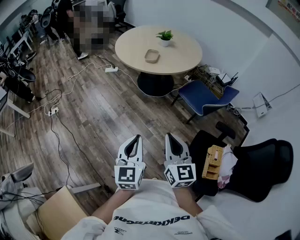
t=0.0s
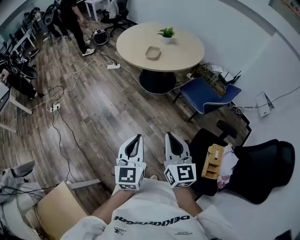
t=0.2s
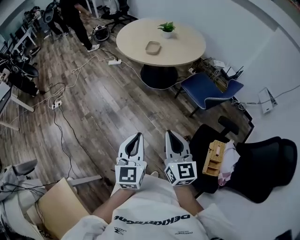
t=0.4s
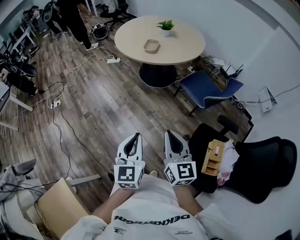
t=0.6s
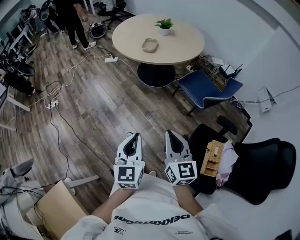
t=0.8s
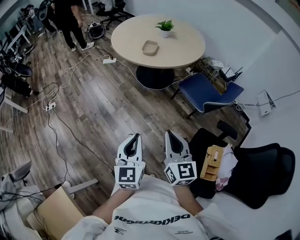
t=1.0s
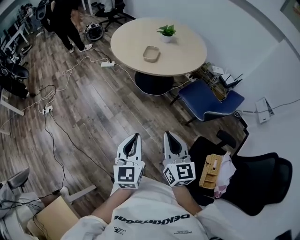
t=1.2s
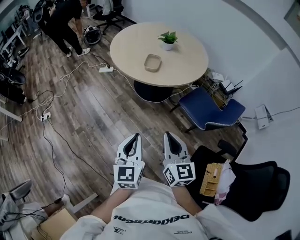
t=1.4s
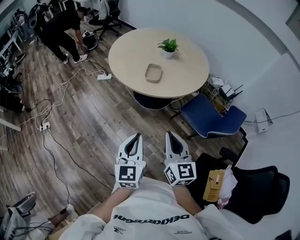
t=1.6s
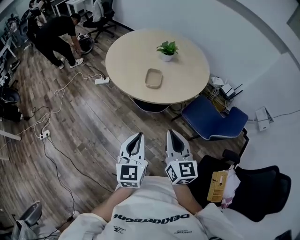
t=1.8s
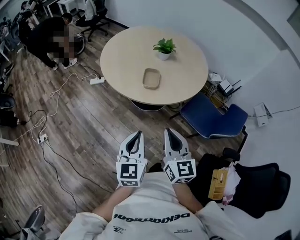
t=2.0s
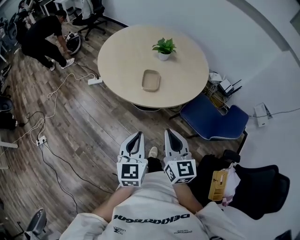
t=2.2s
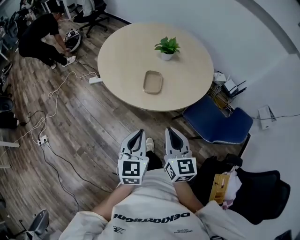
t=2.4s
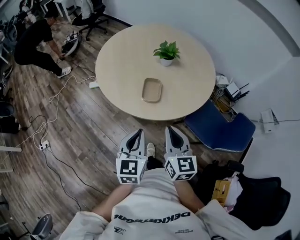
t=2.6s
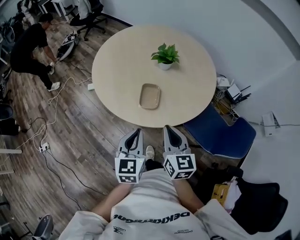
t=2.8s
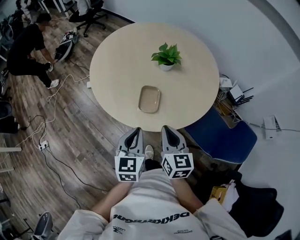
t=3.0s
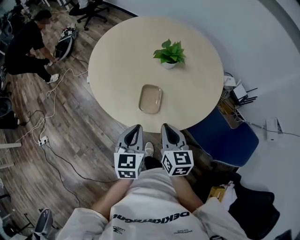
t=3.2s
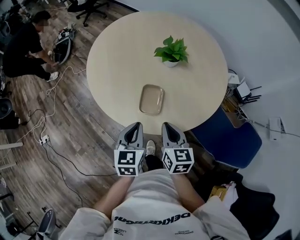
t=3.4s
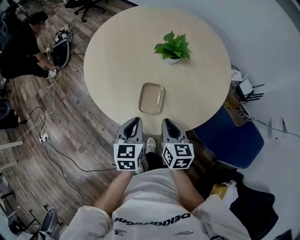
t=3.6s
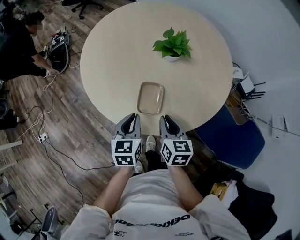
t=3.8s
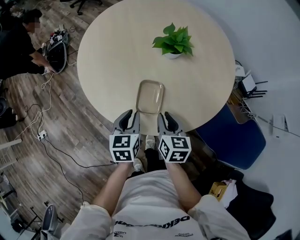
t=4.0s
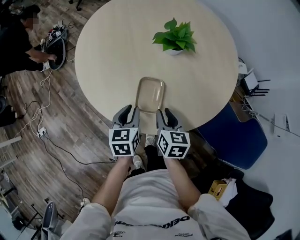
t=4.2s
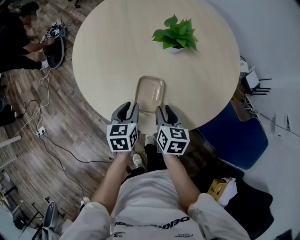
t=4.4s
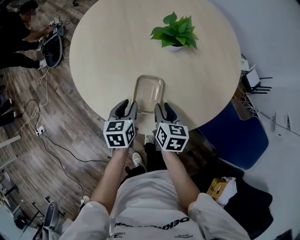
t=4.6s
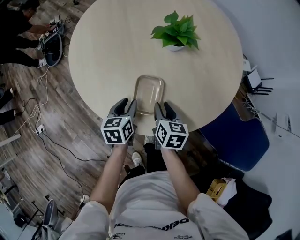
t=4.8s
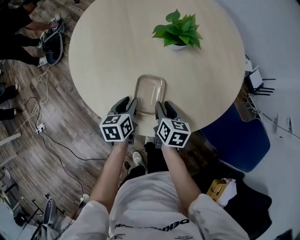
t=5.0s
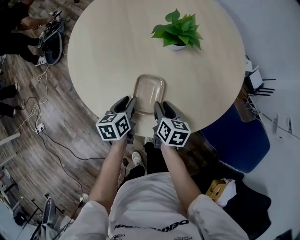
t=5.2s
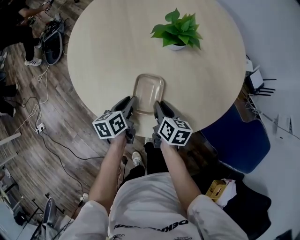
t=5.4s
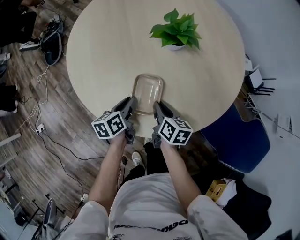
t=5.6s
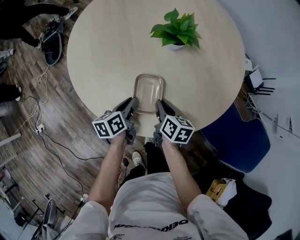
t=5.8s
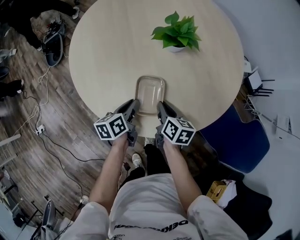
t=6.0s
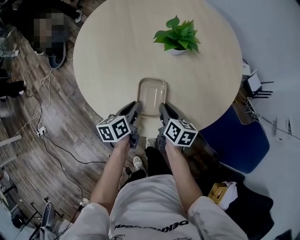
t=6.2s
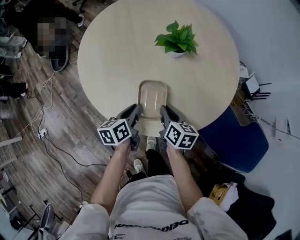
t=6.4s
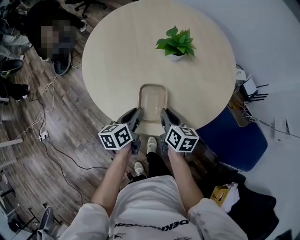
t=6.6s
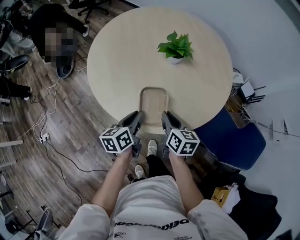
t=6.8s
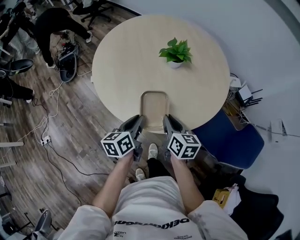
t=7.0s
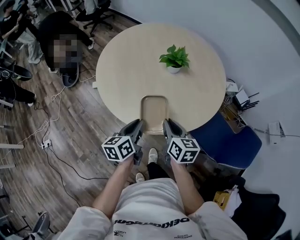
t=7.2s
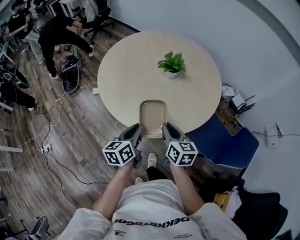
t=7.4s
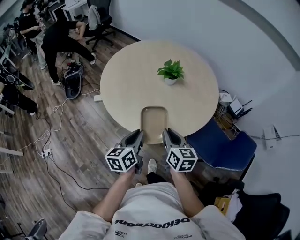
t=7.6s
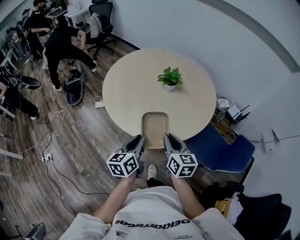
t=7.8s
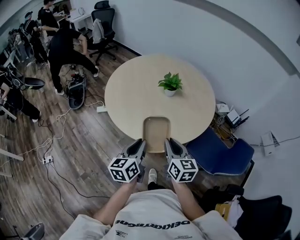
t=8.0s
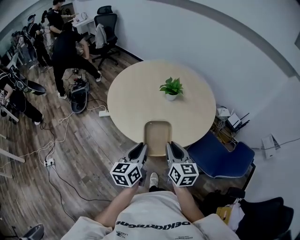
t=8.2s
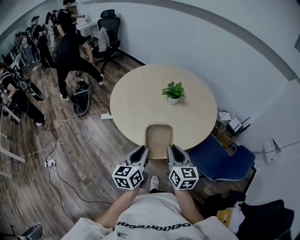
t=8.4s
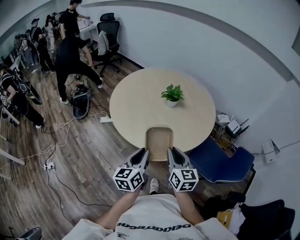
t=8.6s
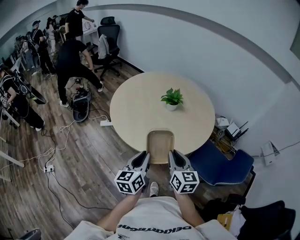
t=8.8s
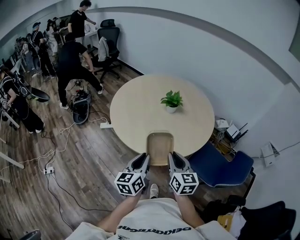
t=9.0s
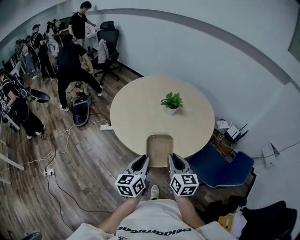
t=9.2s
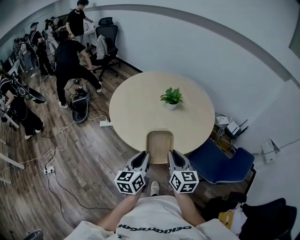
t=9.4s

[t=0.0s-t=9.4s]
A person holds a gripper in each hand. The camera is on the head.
t=0.0s to t=1.6s: Both grippers travel together forward, about 30 cm.
t=1.6s to t=3.2s: The pair of grippers is taken forward, some 40 cm. The right gripper rotates approximately 20 degrees.
t=3.2s to t=4.8s: The two grippers go approximately 25 cm downward and forward. The left gripper turns by approximately 20 degrees, and opens its fingers. The right gripper rotates approximately 20 degrees, and opens up.
t=4.8s to t=6.2s: The left gripper turns by about 20 degrees.
t=6.2s to t=7.8s: Both grippers travel together upward and backward, roughly 30 cm. The left gripper changes its angle by roughly 20 degrees, while the right gripper changes its angle by some 30 degrees.
t=7.8s to t=9.4s: The right gripper moves approximately 5 cm; the left gripper ends up roughly 5 cm from where it was.

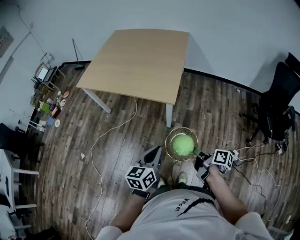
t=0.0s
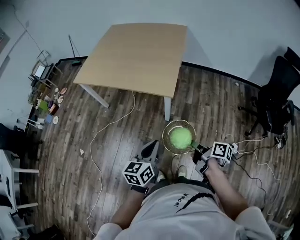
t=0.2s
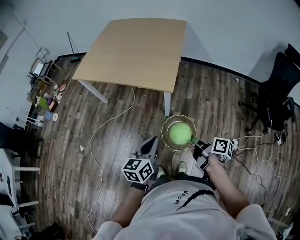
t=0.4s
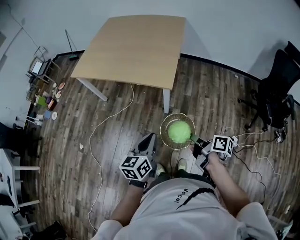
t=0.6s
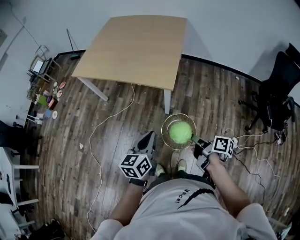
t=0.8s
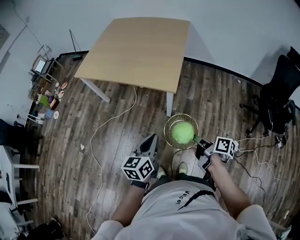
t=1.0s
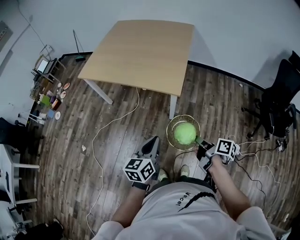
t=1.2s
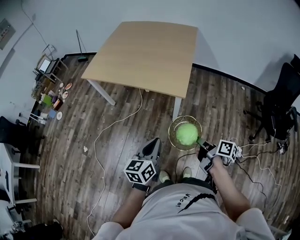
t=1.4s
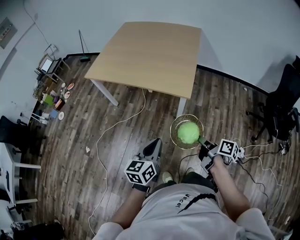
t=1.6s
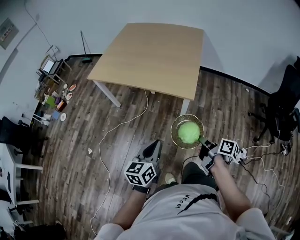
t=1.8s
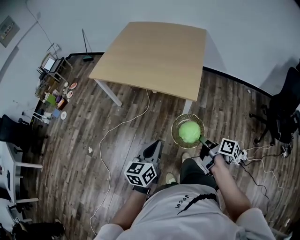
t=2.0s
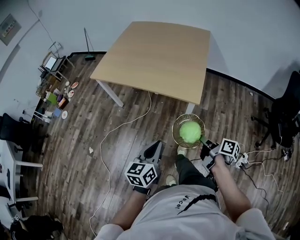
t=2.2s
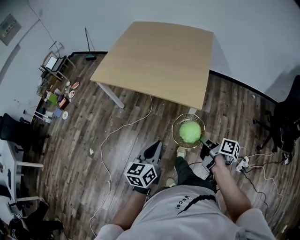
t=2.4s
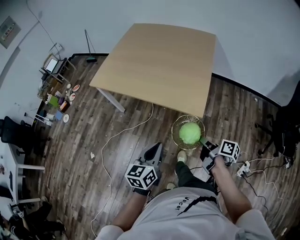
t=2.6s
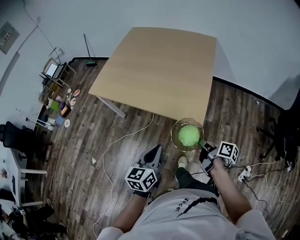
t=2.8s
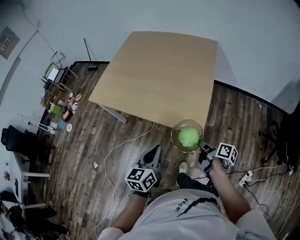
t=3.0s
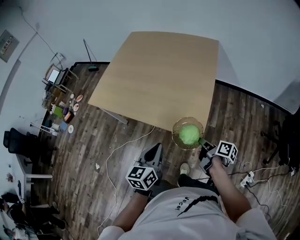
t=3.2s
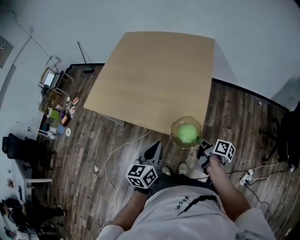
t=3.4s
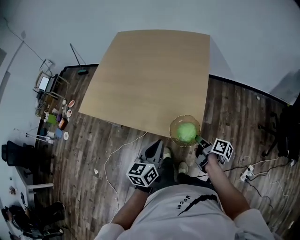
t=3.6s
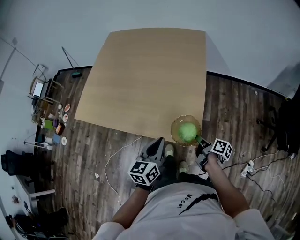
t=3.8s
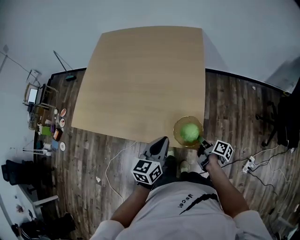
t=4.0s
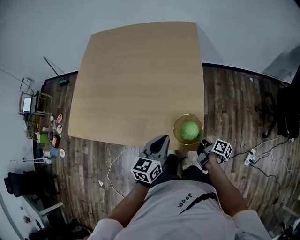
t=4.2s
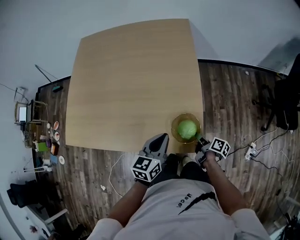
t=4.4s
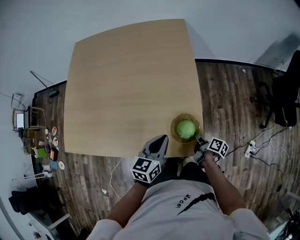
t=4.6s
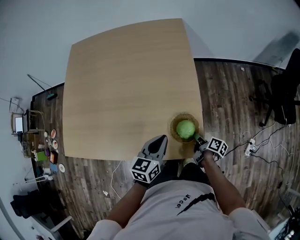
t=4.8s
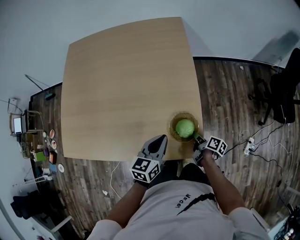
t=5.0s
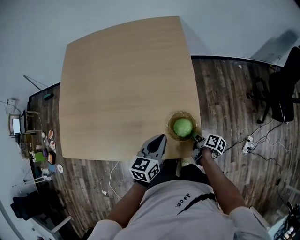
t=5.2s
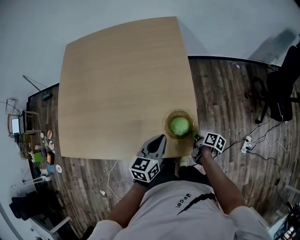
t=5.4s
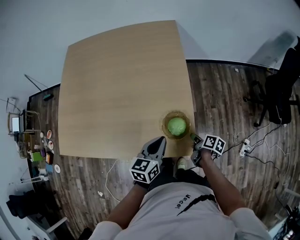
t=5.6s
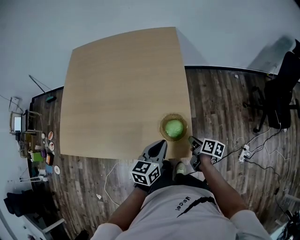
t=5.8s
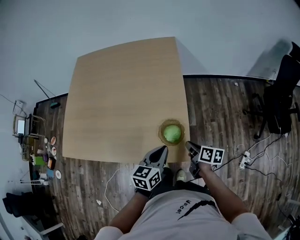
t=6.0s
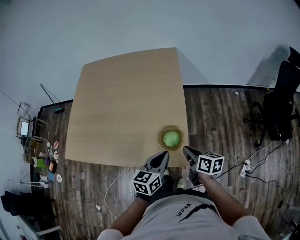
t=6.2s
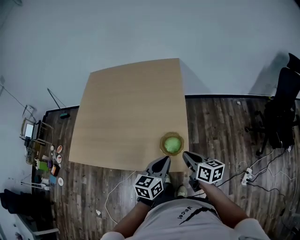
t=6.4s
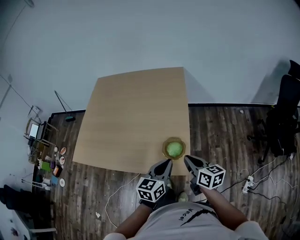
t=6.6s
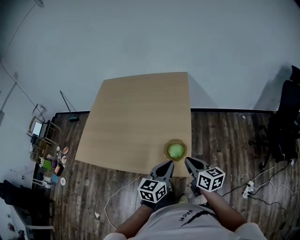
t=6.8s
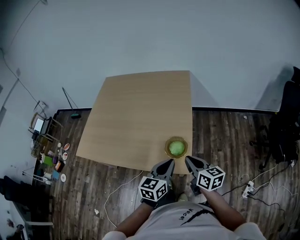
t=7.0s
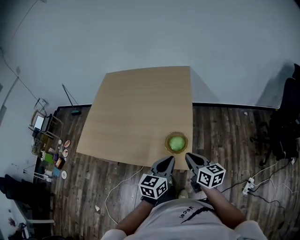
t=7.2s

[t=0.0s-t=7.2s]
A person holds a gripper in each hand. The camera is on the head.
t=0.0s to t=1.4s: The left gripper shifts by about 10 cm.
t=1.4s to t=2.8s: The left gripper moves roughly 20 cm.
t=2.8s to t=4.4s: The left gripper changes place by roughly 35 cm, and rotates roughly 30 degrees.
t=5.8s to t=7.2s: The left gripper heads upward, covering about 10 cm.

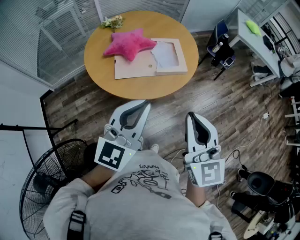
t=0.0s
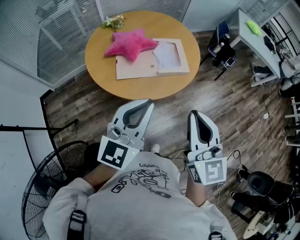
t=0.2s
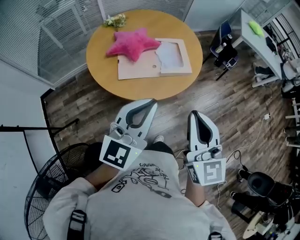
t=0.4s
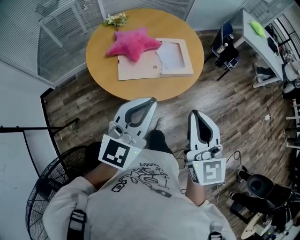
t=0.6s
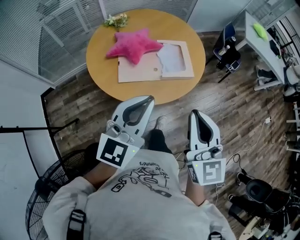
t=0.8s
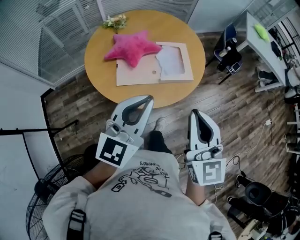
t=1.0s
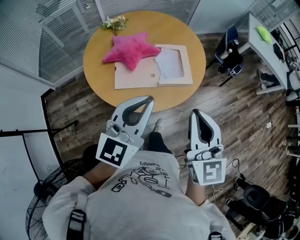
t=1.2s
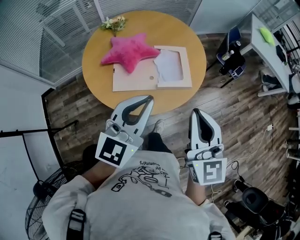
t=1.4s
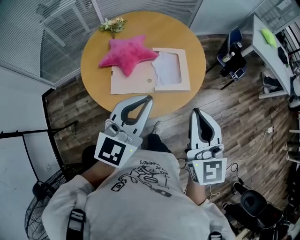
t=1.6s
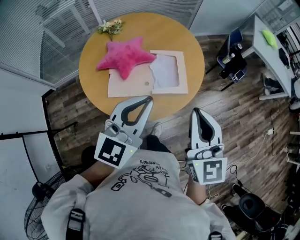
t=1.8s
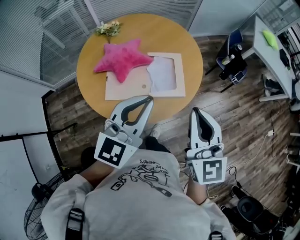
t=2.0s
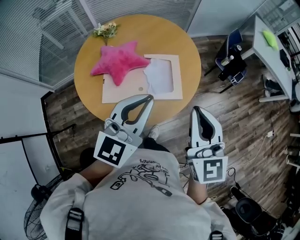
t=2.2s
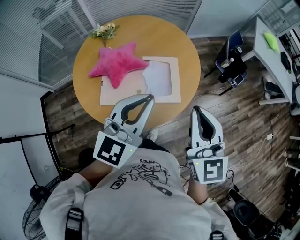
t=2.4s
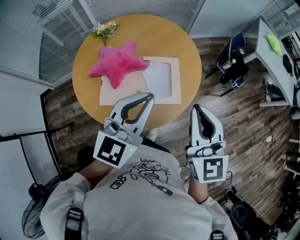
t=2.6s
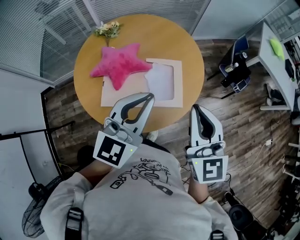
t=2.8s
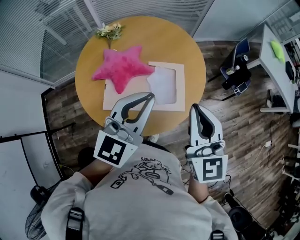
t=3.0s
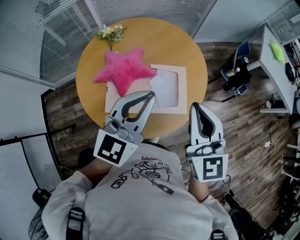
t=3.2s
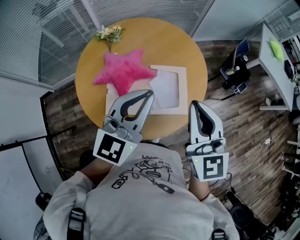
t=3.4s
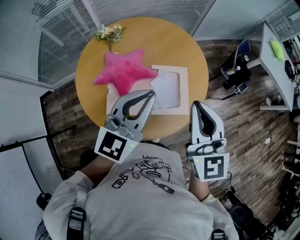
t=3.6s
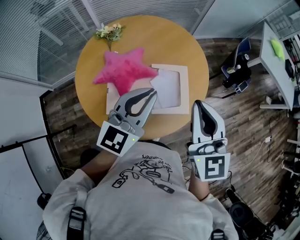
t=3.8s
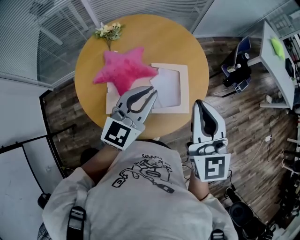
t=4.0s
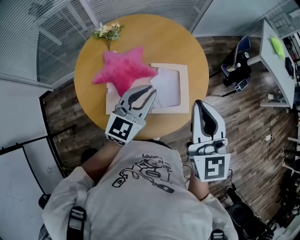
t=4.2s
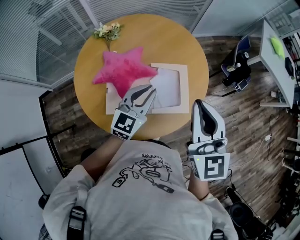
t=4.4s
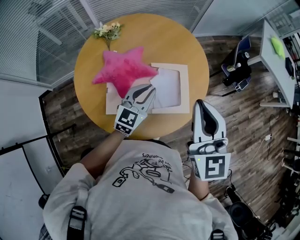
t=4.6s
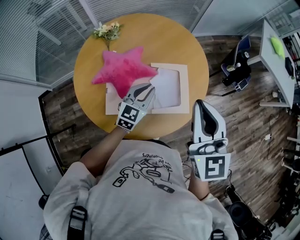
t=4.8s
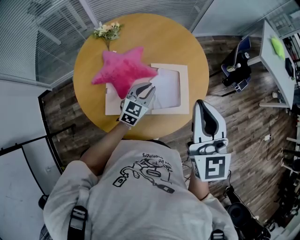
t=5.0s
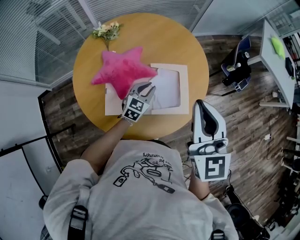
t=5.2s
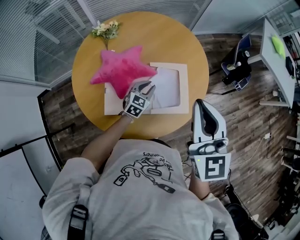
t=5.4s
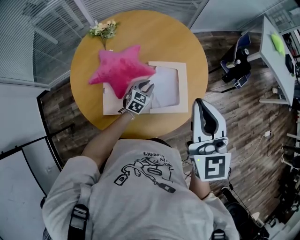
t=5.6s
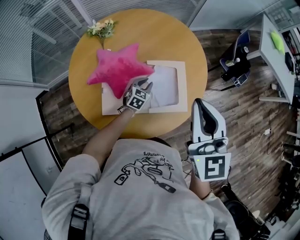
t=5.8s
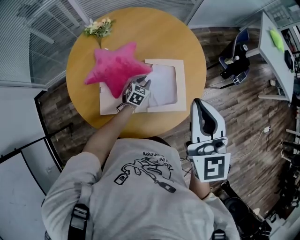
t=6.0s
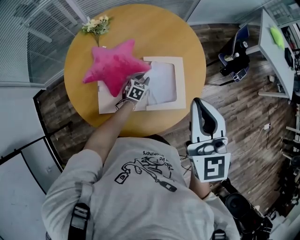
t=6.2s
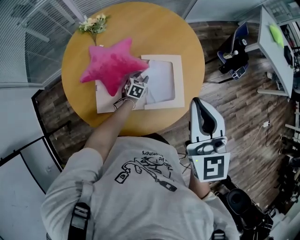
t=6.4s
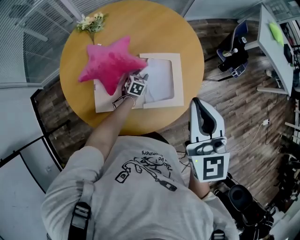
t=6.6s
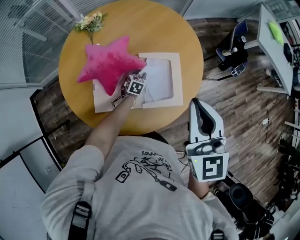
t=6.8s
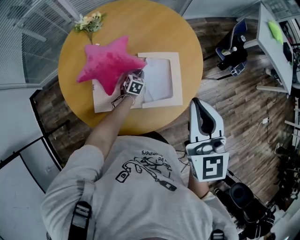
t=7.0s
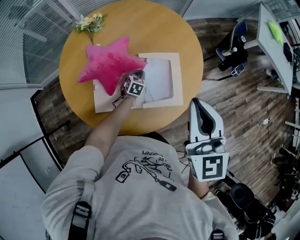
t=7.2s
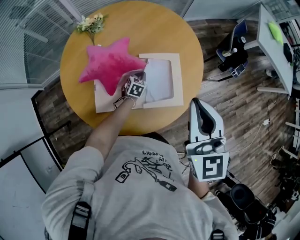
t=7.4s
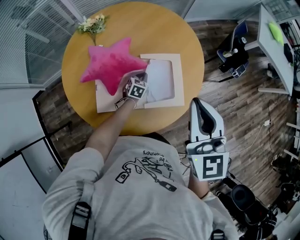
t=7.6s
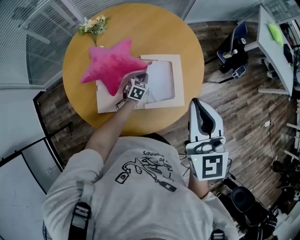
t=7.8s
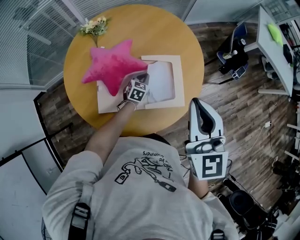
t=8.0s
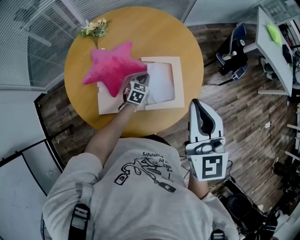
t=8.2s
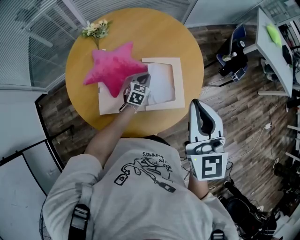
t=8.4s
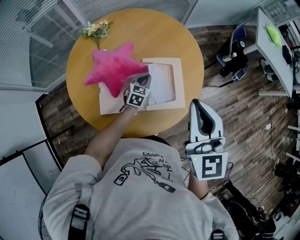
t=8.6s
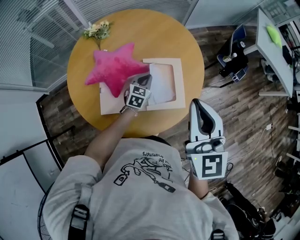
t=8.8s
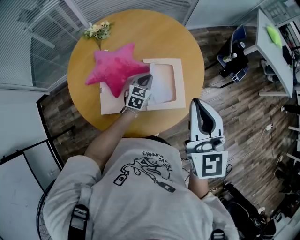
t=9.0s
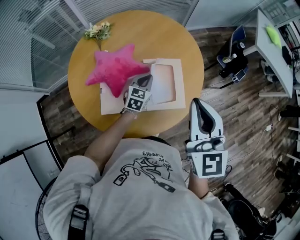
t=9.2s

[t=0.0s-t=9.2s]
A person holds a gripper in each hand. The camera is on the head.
t=0.0s to t=1.6s: Both grippers move forward, about 20 cm.
t=1.6s to t=3.0s: Both grippers travel together forward, roughly 15 cm.
t=3.0s to t=4.6s: The right gripper shifts by roughly 5 cm, while the left gripper goes about 20 cm downward and forward.
t=4.6s to t=6.2s: The left gripper shifts about 25 cm downward, and tilts its fingers about 30 degrees downward.
t=6.2s to t=7.6s: The left gripper closes its fingers.
t=7.6s to t=9.2s: The left gripper moves upward, approximately 15 cm.
